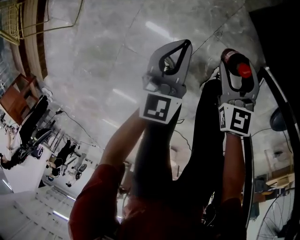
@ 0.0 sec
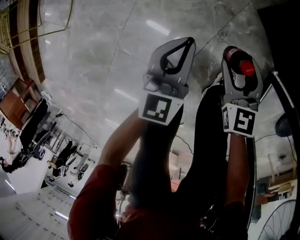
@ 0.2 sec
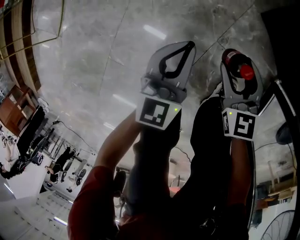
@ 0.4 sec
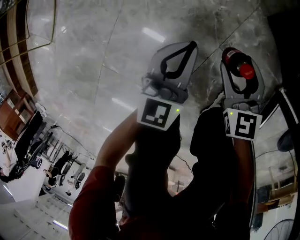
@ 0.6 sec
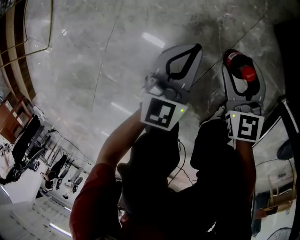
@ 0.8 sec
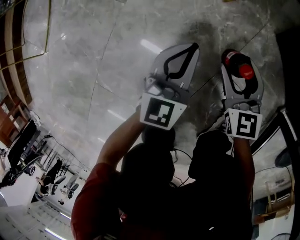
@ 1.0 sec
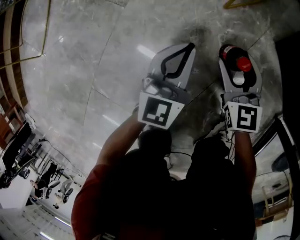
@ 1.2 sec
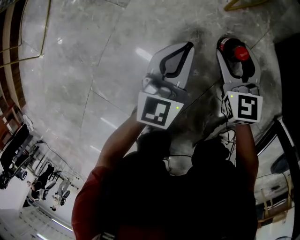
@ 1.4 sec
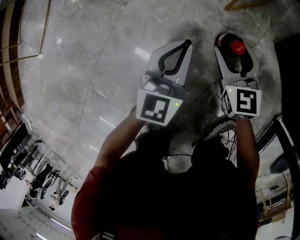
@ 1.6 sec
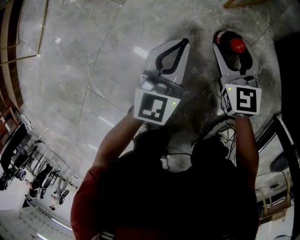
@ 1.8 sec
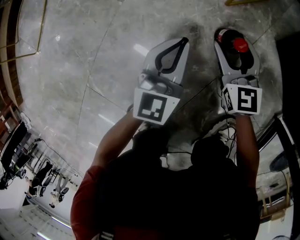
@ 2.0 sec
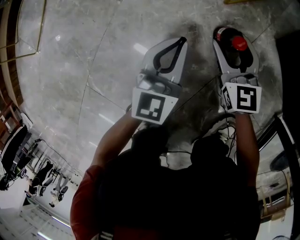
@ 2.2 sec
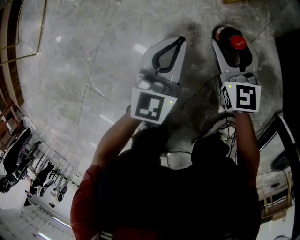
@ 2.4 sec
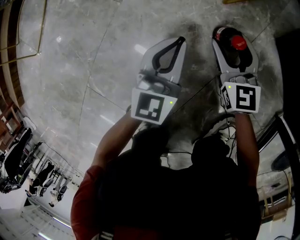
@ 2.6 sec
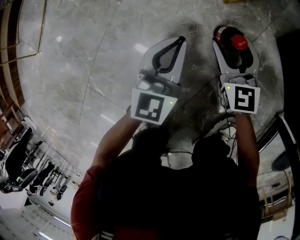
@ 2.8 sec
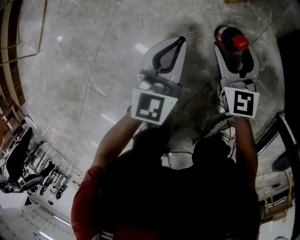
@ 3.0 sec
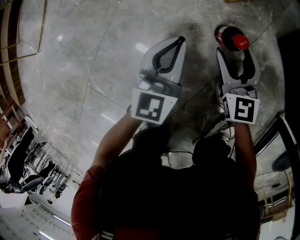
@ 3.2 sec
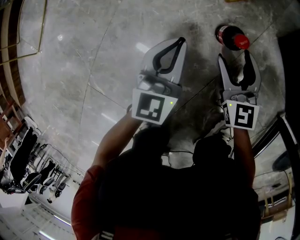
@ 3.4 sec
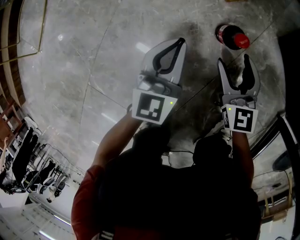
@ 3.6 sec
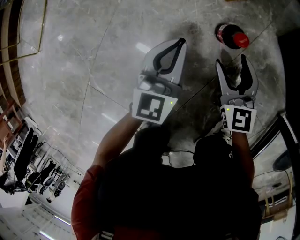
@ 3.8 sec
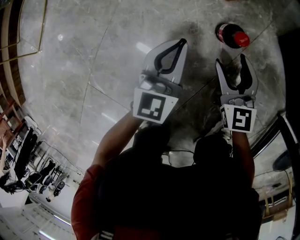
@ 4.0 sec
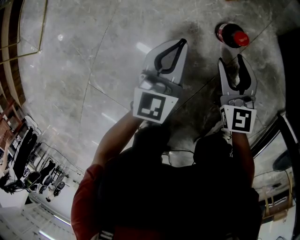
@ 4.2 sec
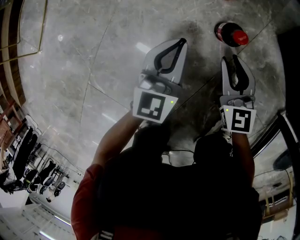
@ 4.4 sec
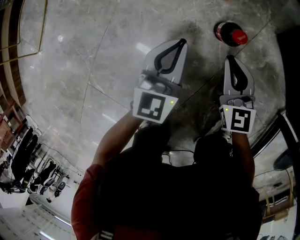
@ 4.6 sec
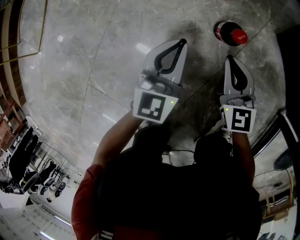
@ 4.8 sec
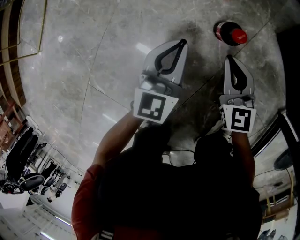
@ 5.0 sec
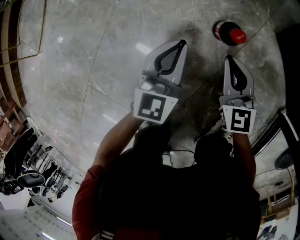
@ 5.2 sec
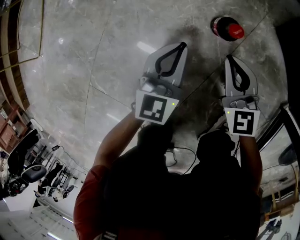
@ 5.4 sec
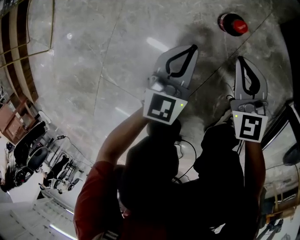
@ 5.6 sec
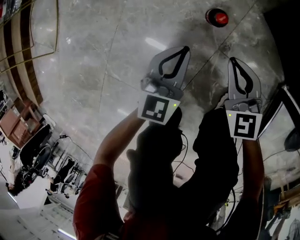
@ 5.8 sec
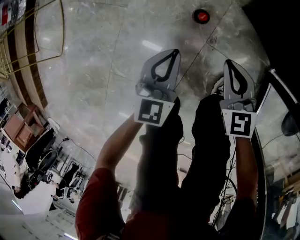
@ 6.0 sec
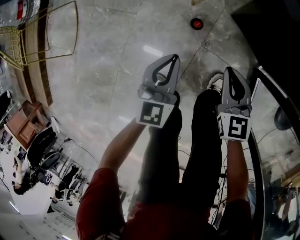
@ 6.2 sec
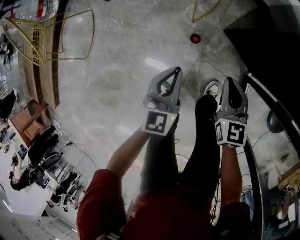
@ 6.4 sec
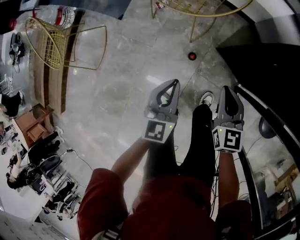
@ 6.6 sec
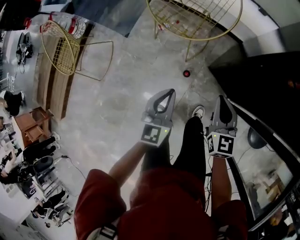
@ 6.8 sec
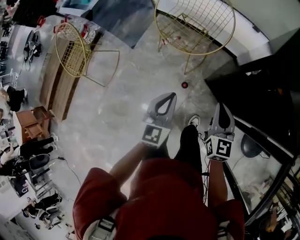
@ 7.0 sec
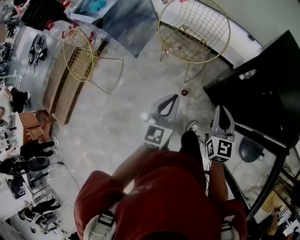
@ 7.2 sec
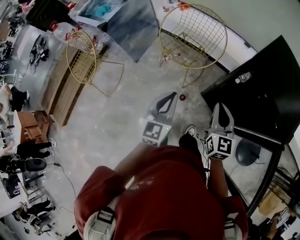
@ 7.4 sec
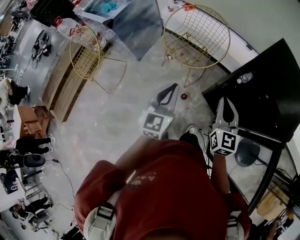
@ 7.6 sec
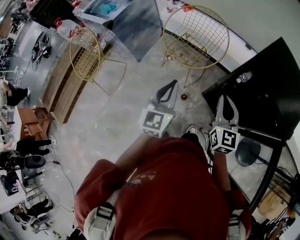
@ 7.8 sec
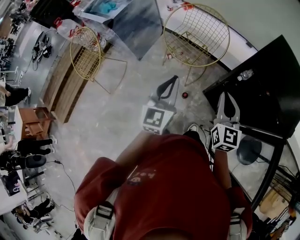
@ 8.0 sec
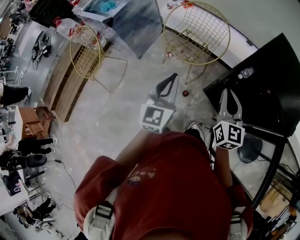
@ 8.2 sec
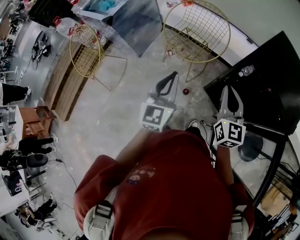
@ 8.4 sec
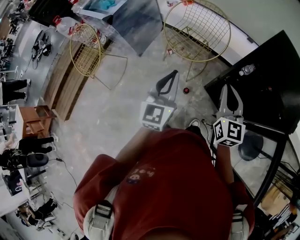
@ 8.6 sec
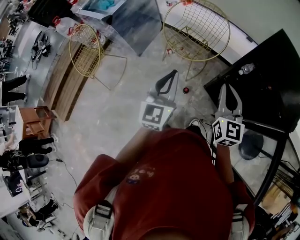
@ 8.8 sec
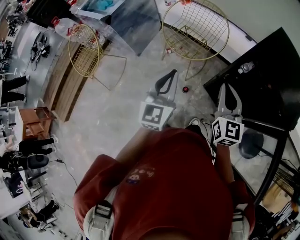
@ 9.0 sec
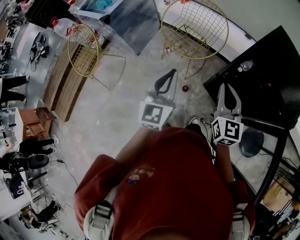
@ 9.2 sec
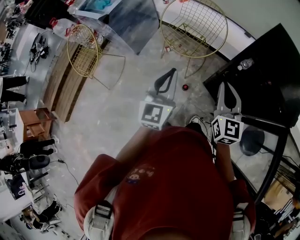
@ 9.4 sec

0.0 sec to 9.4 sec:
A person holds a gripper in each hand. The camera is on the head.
0.0 sec to 1.6 sec: Both grippers travel together downward, about 35 cm.
1.6 sec to 3.2 sec: The grippers stay close to where they were, moving slightly.
3.2 sec to 4.8 sec: The right gripper closes.
4.8 sec to 6.2 sec: The two grippers go approximately 35 cm upward.
6.2 sec to 7.8 sec: The grippers both shift upward by some 60 cm. The right gripper turns by approximately 20 degrees.
7.8 sec to 9.4 sec: The grippers stay close to where they were, moving slightly.

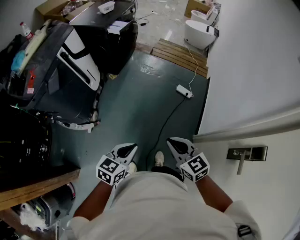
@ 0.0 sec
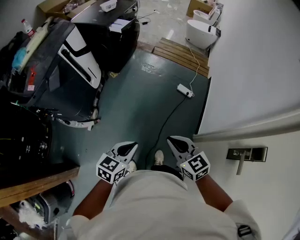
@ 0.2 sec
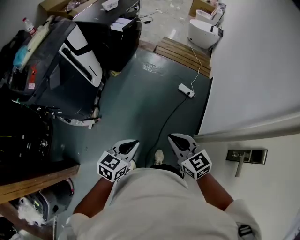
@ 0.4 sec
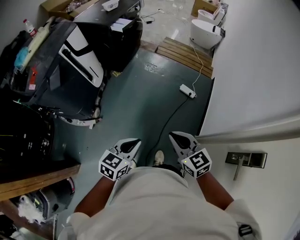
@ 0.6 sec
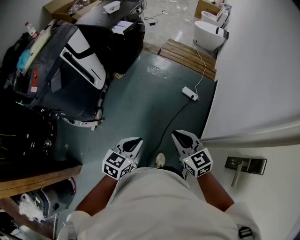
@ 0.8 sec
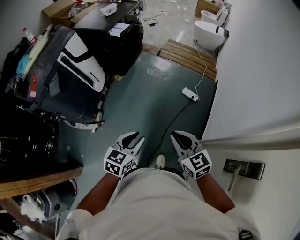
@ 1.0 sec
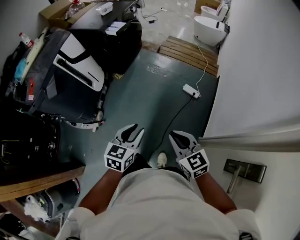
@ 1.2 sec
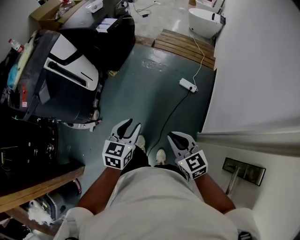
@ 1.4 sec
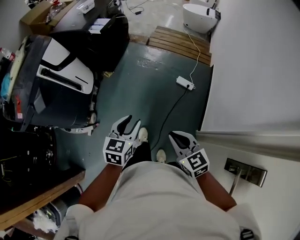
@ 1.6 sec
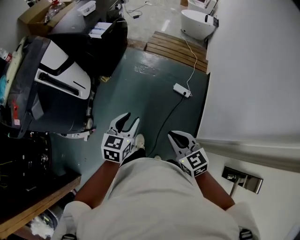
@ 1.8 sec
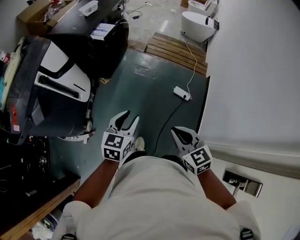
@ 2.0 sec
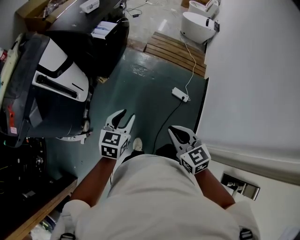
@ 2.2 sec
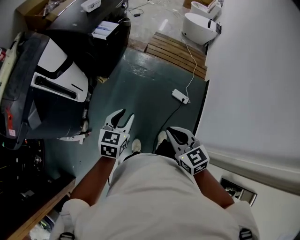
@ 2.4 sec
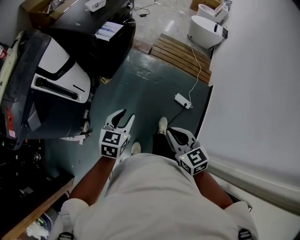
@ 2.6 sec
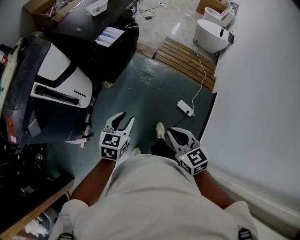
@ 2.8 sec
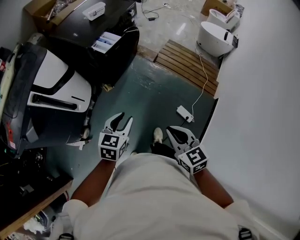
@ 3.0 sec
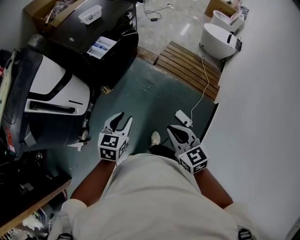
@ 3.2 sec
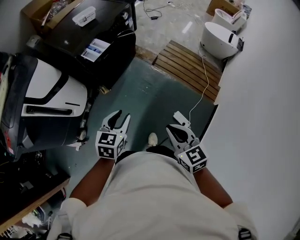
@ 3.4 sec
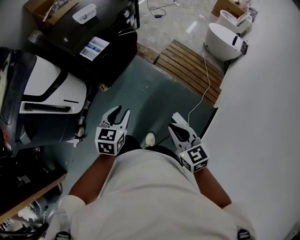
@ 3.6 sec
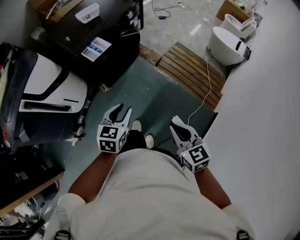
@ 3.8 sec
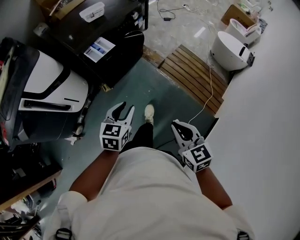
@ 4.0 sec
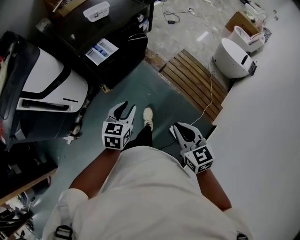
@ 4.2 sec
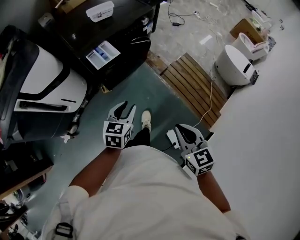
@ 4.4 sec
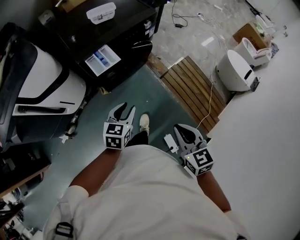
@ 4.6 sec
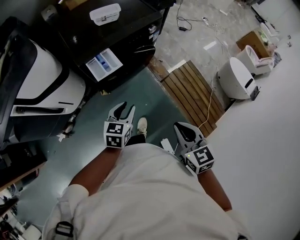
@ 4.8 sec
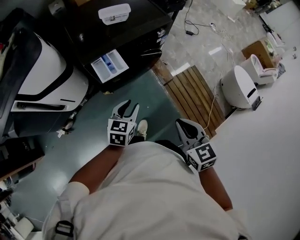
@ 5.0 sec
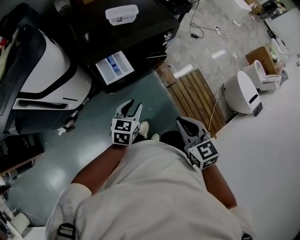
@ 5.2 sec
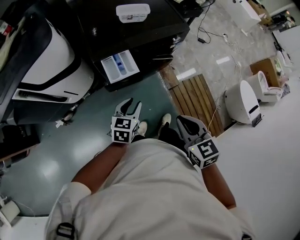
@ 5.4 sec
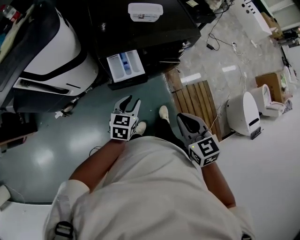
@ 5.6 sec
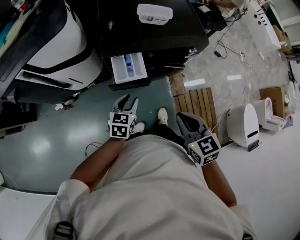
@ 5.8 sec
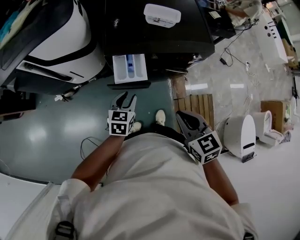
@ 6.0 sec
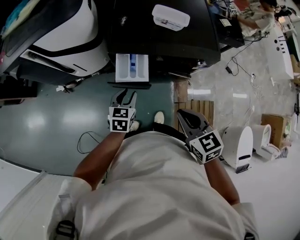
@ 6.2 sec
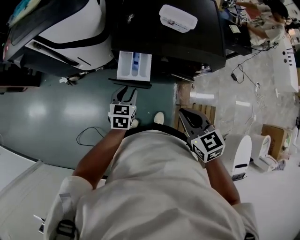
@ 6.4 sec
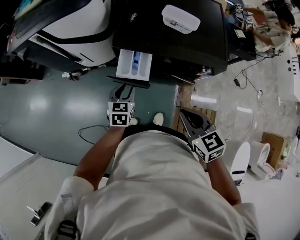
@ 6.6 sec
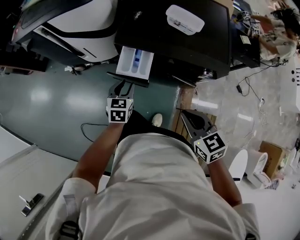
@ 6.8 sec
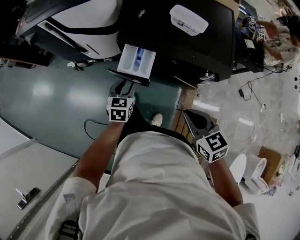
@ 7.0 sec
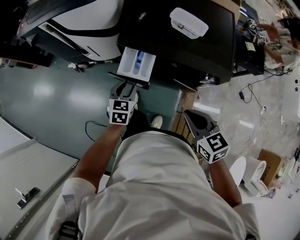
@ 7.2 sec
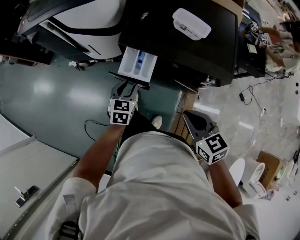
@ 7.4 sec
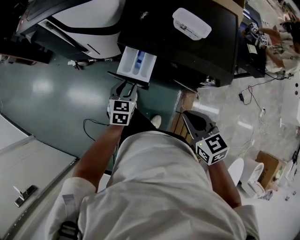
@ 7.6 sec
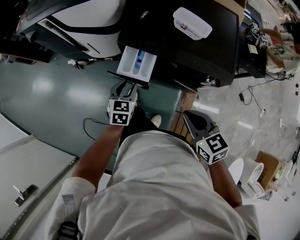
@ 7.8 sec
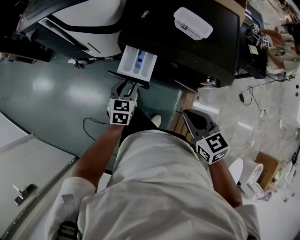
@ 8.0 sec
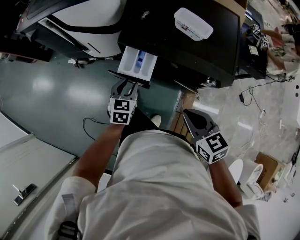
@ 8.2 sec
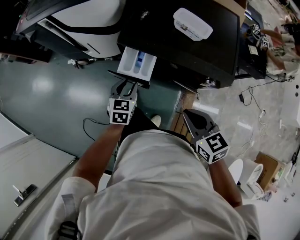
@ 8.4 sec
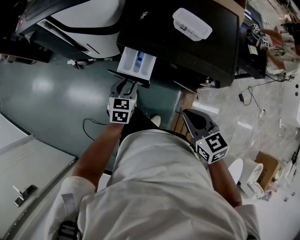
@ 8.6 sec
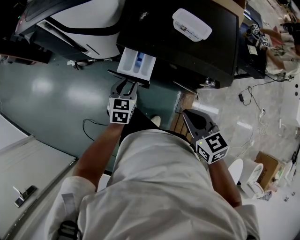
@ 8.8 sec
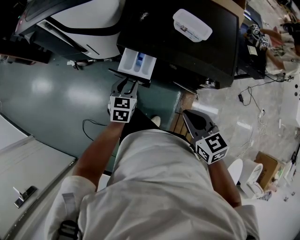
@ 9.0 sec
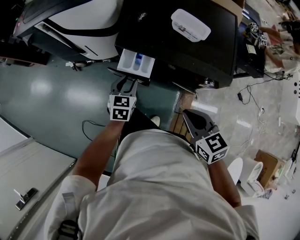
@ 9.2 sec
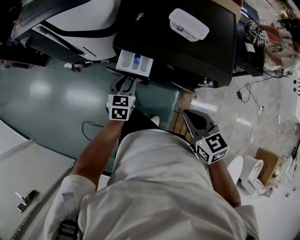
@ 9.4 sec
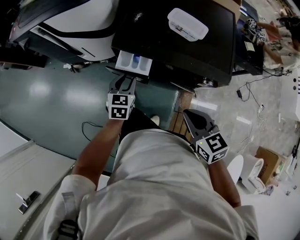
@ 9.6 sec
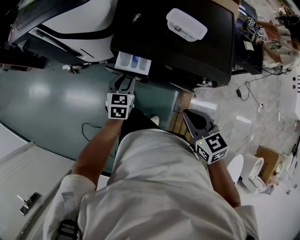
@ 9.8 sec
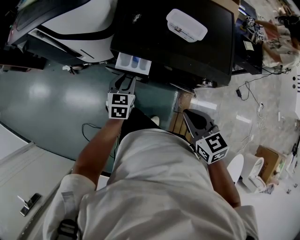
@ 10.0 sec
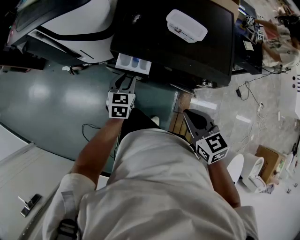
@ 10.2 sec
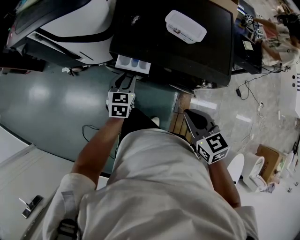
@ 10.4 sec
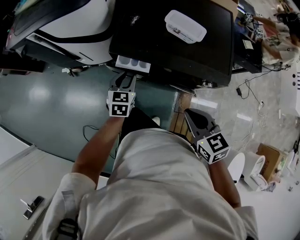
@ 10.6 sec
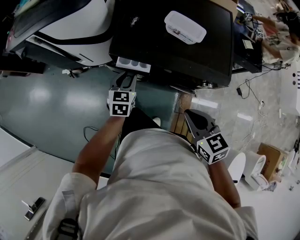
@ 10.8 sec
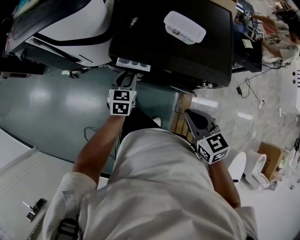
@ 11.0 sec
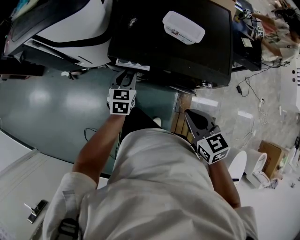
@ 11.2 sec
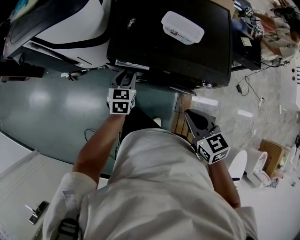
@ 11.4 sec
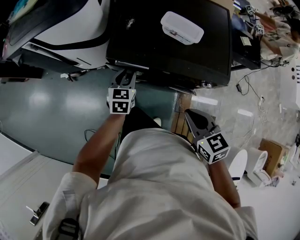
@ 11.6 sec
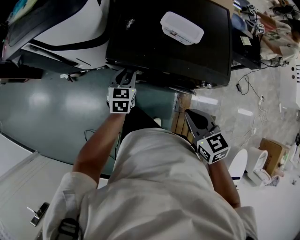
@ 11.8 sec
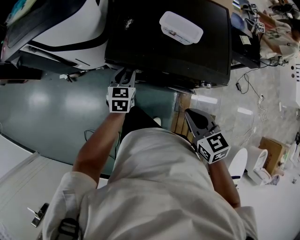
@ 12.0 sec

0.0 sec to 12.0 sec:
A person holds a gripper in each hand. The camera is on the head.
0.0 sec to 1.6 sec: Both grippers move forward and to the right, about 20 cm. The left gripper opens its fingers.
1.6 sec to 3.0 sec: Both grippers move forward, some 35 cm.
3.0 sec to 4.4 sec: The grippers both shift forward and to the right by approximately 30 cm.
4.4 sec to 6.0 sec: The right gripper shifts by approximately 35 cm, and rotates about 40 degrees. The left gripper moves approximately 25 cm, and turns by some 40 degrees.
6.0 sec to 7.6 sec: The left gripper turns by approximately 20 degrees, while the right gripper ends up roughly 10 cm from where it was, and turns by some 20 degrees.
7.6 sec to 9.0 sec: The grippers move only a little.
9.0 sec to 10.4 sec: The left gripper travels forward by roughly 5 cm.
10.4 sec to 12.0 sec: The left gripper changes place by roughly 5 cm.

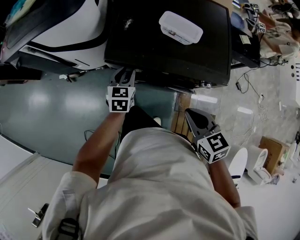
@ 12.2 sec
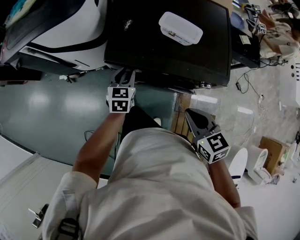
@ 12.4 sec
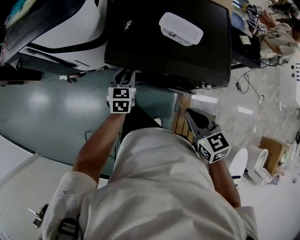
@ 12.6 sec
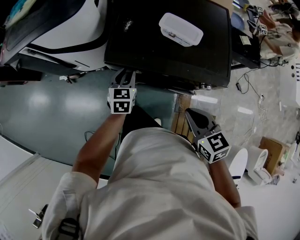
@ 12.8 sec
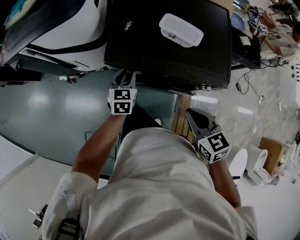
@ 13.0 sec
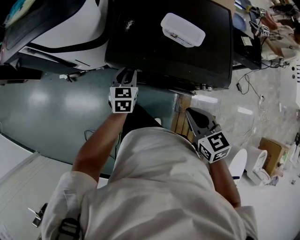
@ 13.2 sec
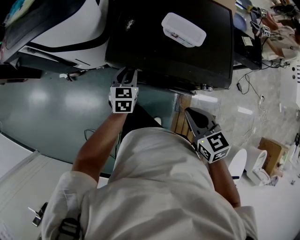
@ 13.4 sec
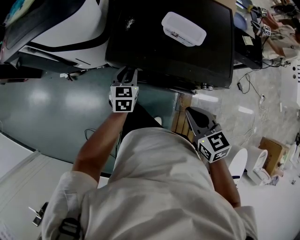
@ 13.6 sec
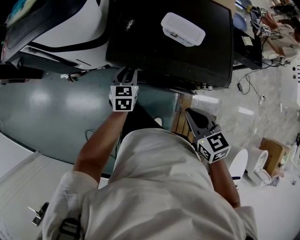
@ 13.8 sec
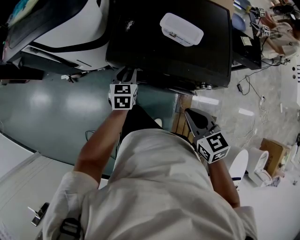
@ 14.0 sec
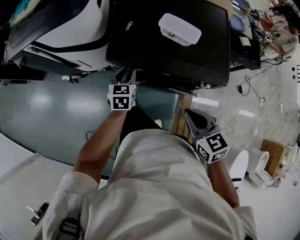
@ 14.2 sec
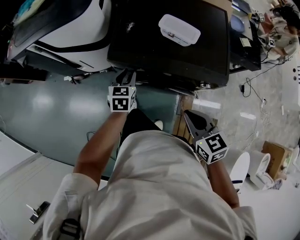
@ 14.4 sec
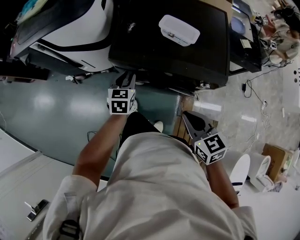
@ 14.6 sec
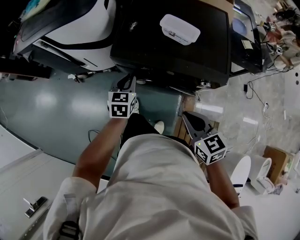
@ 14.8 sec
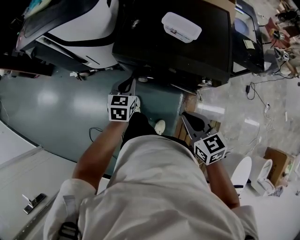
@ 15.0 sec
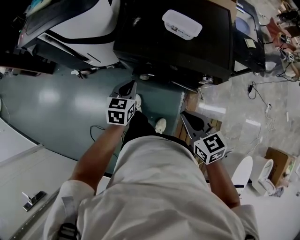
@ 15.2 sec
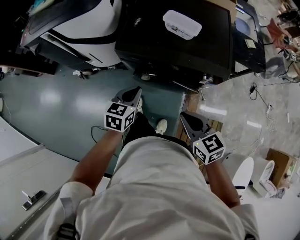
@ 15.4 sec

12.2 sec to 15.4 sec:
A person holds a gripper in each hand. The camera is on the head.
12.2 sec to 13.8 sec: There are only small adjustments of the grippers.
13.8 sec to 15.4 sec: The right gripper shifts roughly 10 cm backward. The left gripper moves backward, some 15 cm, and closes its fingers.
